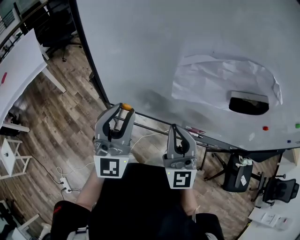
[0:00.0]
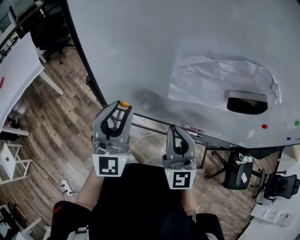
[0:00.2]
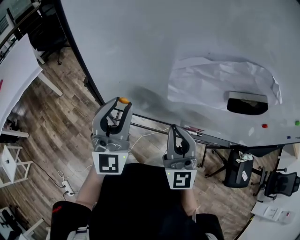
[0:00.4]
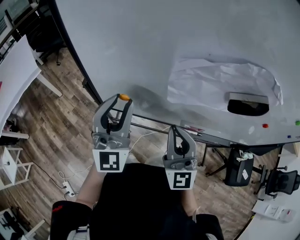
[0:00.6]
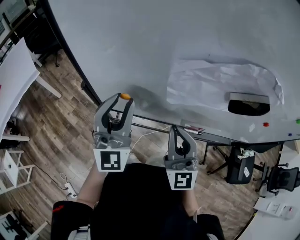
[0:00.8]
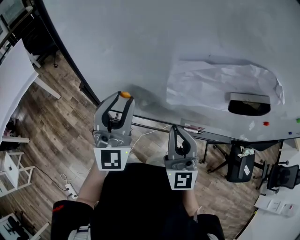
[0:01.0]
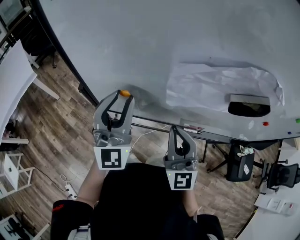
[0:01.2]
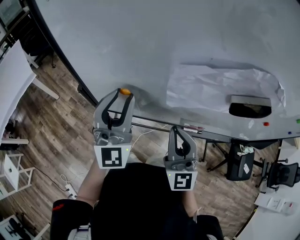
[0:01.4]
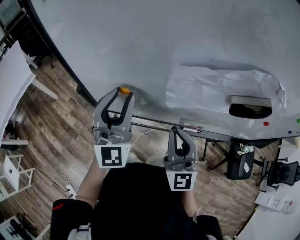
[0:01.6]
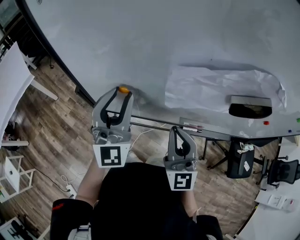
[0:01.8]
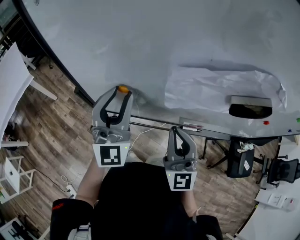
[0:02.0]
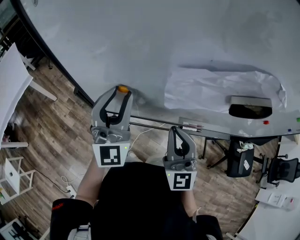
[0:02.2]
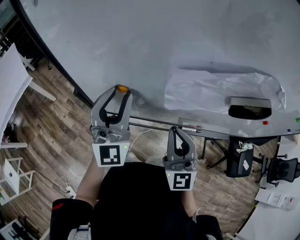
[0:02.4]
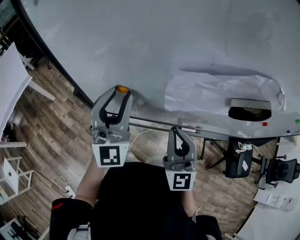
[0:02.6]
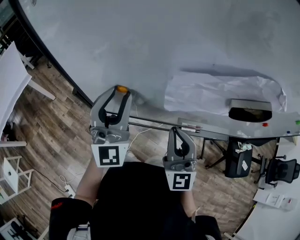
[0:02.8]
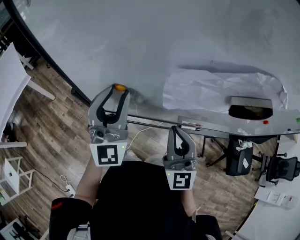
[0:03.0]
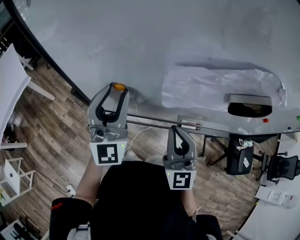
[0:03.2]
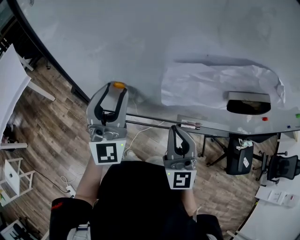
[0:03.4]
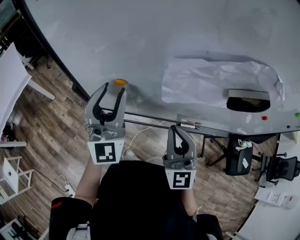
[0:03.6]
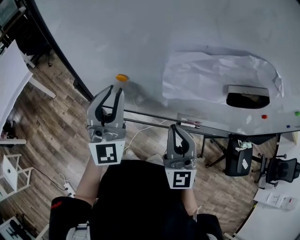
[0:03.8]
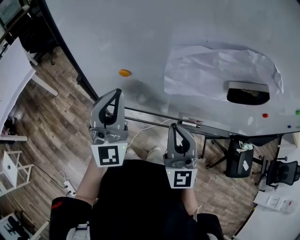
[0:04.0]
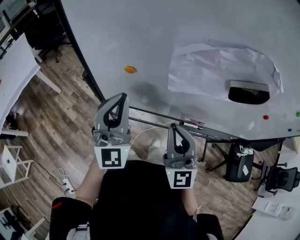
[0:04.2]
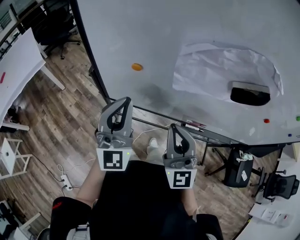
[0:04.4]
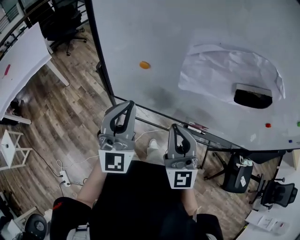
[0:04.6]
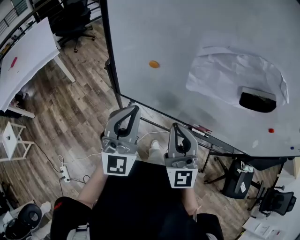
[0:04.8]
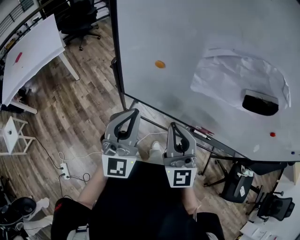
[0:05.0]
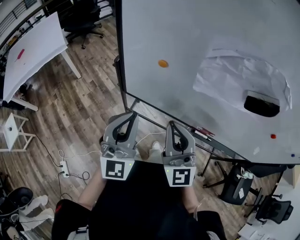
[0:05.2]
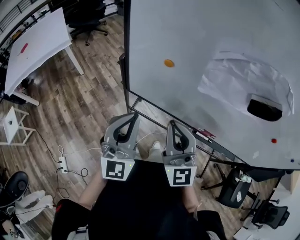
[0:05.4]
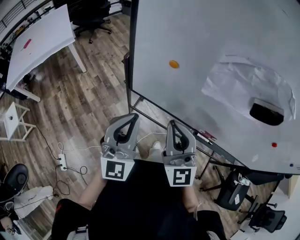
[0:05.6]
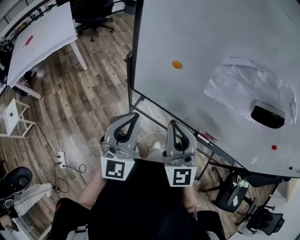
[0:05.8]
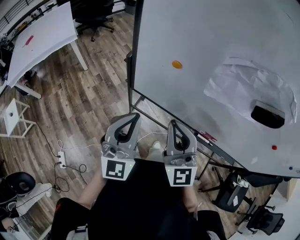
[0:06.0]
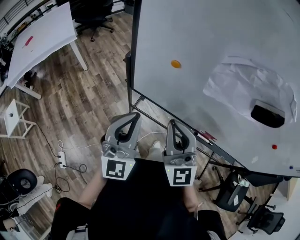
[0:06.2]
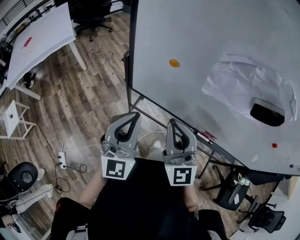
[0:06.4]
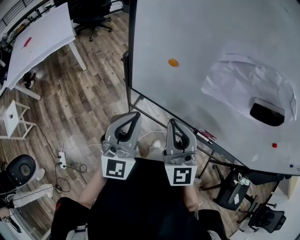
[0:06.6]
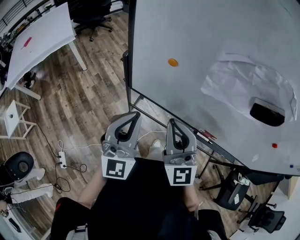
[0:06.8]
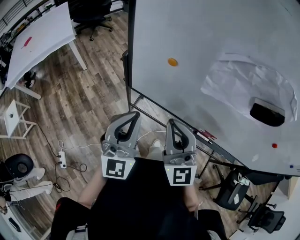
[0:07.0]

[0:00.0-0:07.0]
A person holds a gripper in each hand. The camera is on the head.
0:00.0 to 0:01.4: The left gripper goes approximately 5 cm forward.
0:01.4 to 0:02.8: There are only small adjustments of the grippers.
0:02.8 to 0:04.2: The left gripper shifts roughly 5 cm backward, and closes.
0:04.2 to 0:05.6: The left gripper is displaced backward and to the left by approximately 10 cm. Meanwhile the right gripper heads to the left, covering about 10 cm.
0:05.6 to 0:07.0: Both grippers stay put.

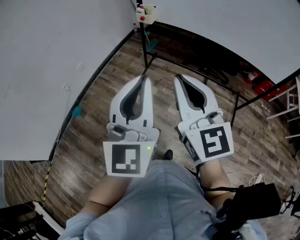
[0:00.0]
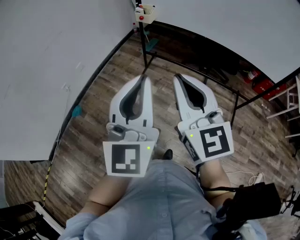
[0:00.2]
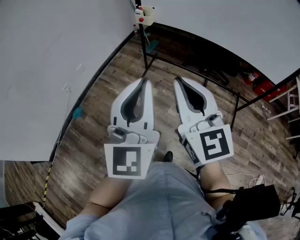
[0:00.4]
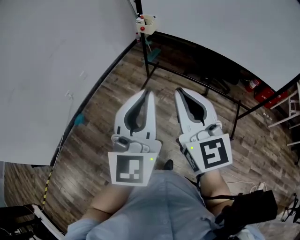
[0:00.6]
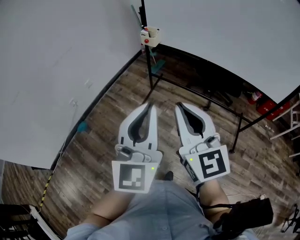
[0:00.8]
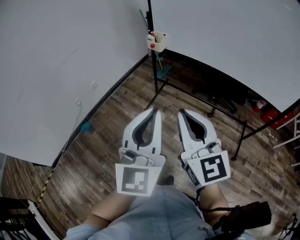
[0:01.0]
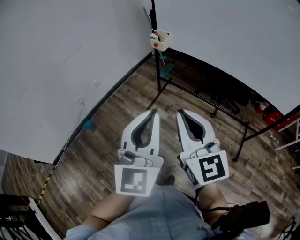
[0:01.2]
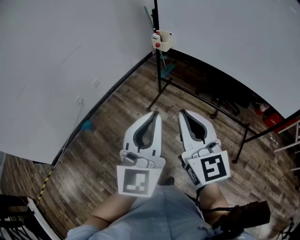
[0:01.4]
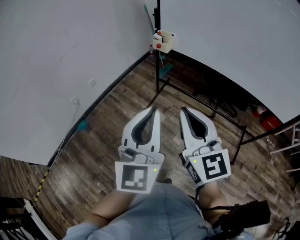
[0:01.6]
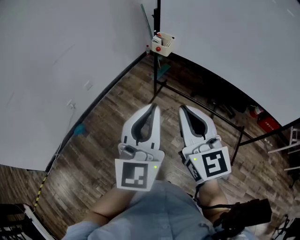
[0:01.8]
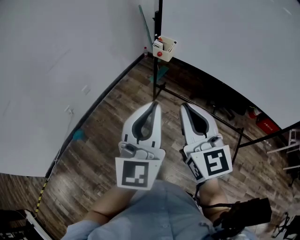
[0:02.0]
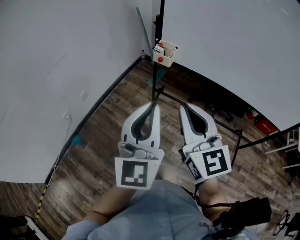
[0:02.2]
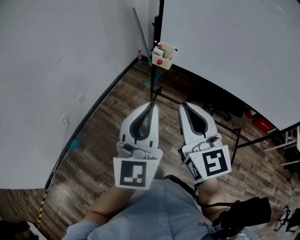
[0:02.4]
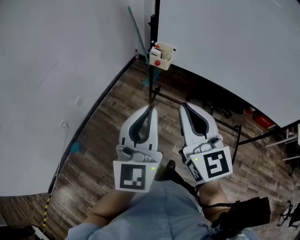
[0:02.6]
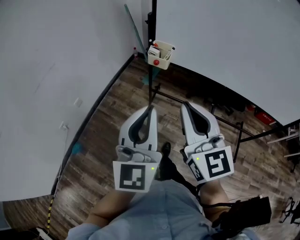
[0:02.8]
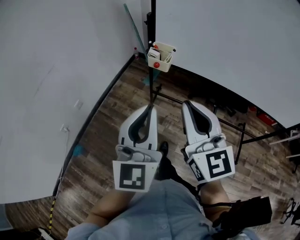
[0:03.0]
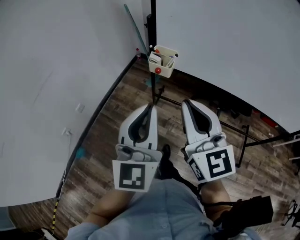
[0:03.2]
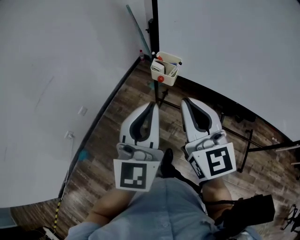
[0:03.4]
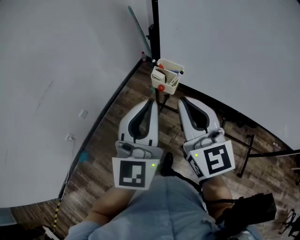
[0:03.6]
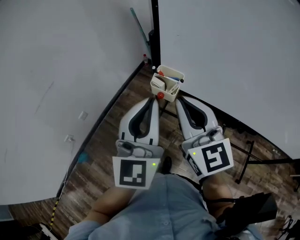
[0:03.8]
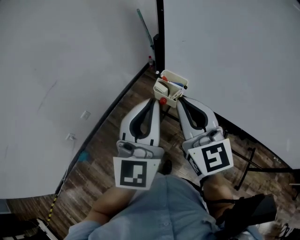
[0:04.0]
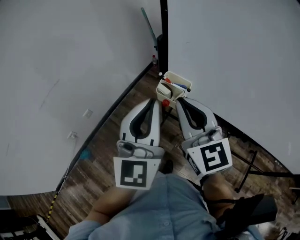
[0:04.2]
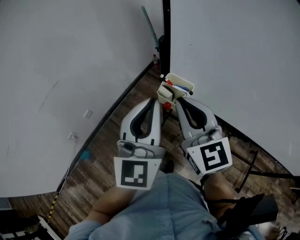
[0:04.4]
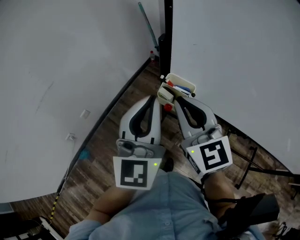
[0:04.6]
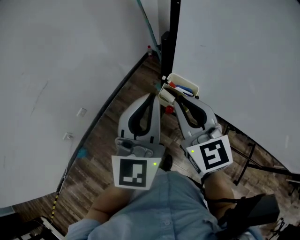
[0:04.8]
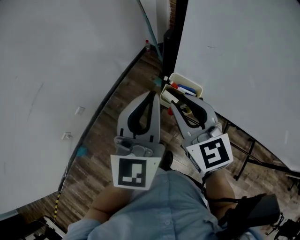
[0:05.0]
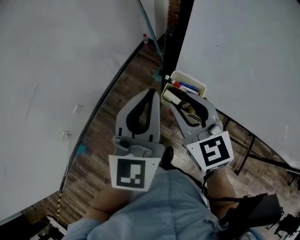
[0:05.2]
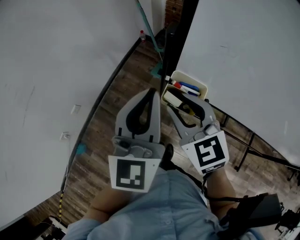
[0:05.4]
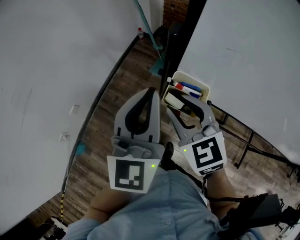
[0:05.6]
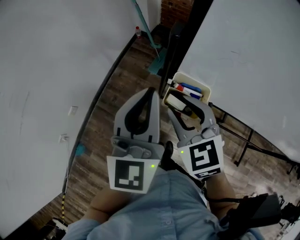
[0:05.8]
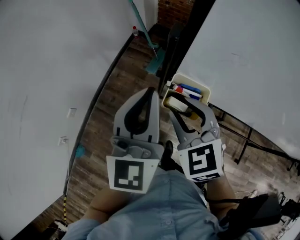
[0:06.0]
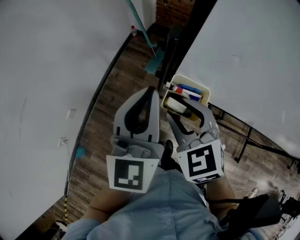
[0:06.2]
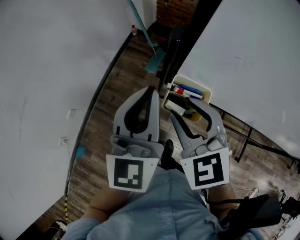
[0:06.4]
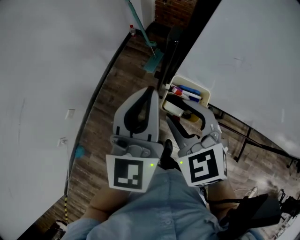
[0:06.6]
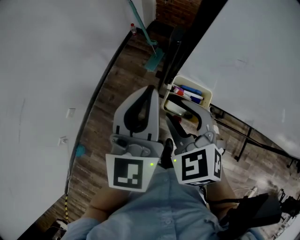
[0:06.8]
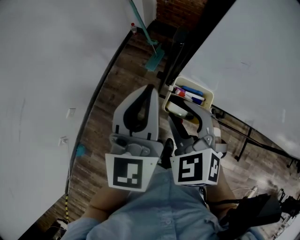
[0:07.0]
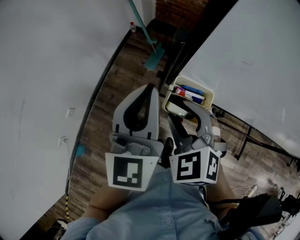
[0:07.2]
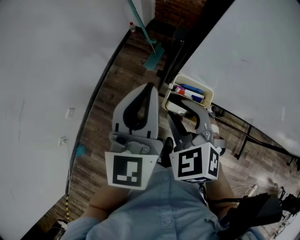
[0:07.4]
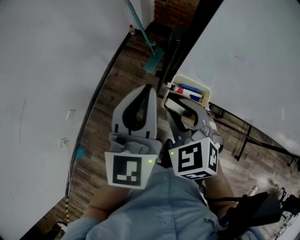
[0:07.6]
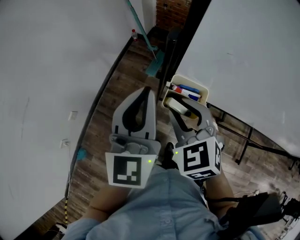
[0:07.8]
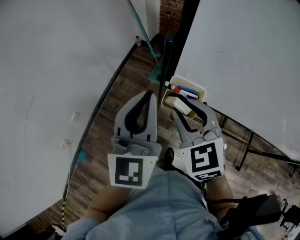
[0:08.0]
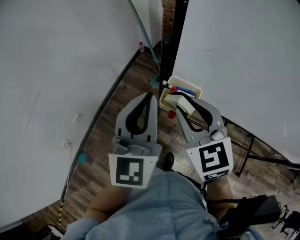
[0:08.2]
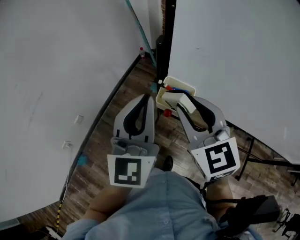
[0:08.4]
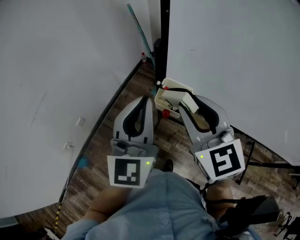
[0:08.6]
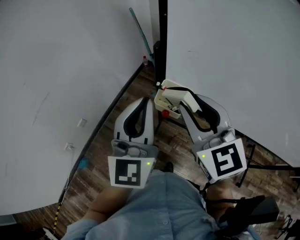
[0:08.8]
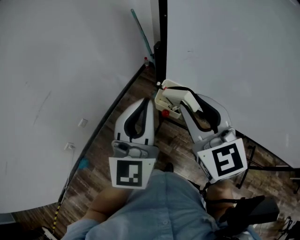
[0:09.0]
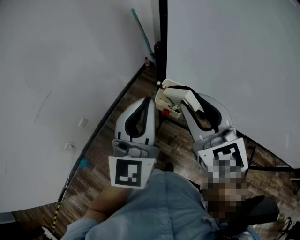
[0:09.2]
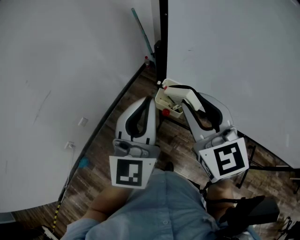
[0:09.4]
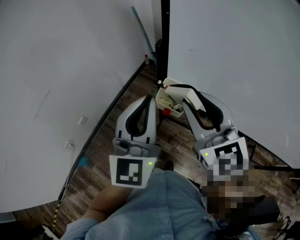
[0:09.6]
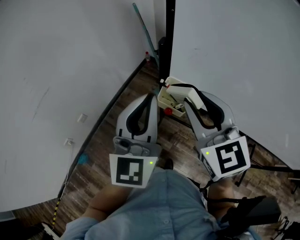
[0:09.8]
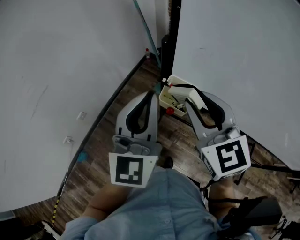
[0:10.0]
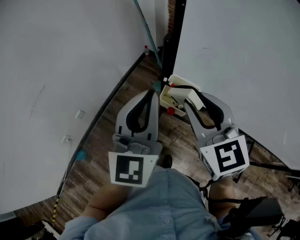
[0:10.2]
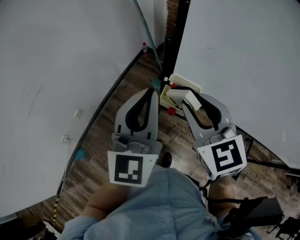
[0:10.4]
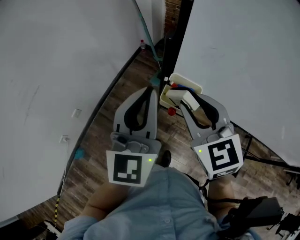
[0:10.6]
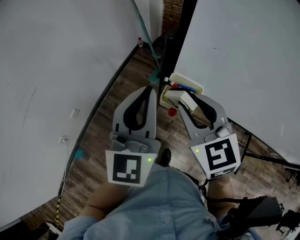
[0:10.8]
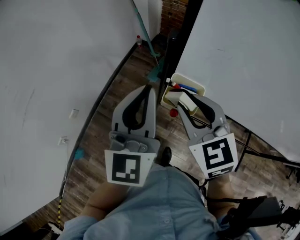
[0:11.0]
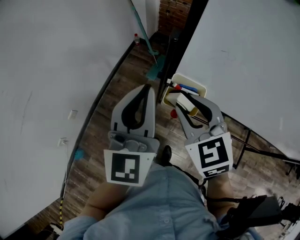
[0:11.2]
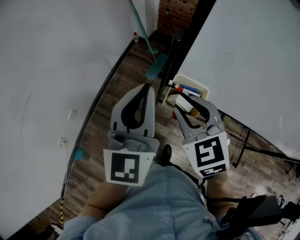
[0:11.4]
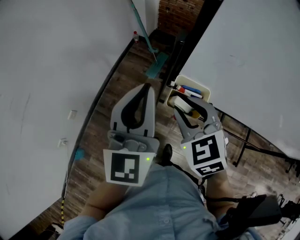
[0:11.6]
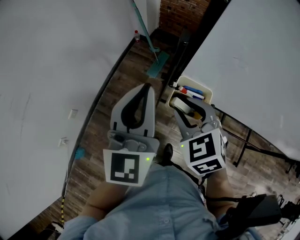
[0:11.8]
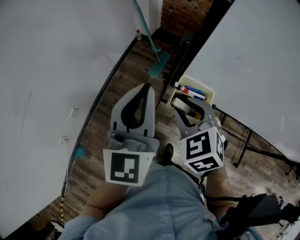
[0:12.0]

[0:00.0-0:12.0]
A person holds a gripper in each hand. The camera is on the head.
0:00.0 to 0:01.6: The two grippers go roughly 10 cm forward.
0:01.6 to 0:03.0: The two grippers go roughly 25 cm forward.
0:03.0 to 0:04.4: Both grippers travel together forward, approximately 25 cm.
0:04.4 to 0:06.0: The right gripper is displaced downward and forward by some 15 cm, tips its fingers downward by about 30 degrees, and opens its fingers, while the left gripper travels forward and downward by approximately 15 cm.
0:06.0 to 0:07.6: The grippers stay close to where they were, moving slightly.
0:07.6 to 0:09.0: The right gripper moves upward and backward, roughly 20 cm, and tilts its fingers approximately 30 degrees upward; the left gripper shifts approximately 15 cm backward and upward.
0:09.0 to 0:10.4: The left gripper moves approximately 5 cm; the right gripper travels downward by some 5 cm.
0:10.4 to 0:12.0: The left gripper heads forward, covering roughly 5 cm. Meanwhile the right gripper moves downward, some 10 cm, and changes its angle by roughly 30 degrees.

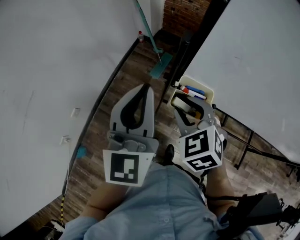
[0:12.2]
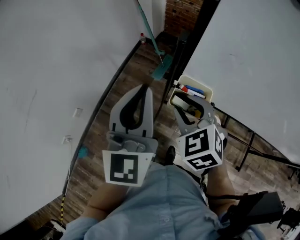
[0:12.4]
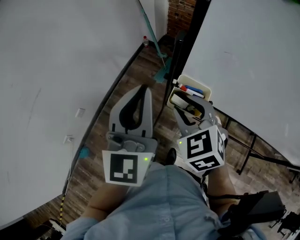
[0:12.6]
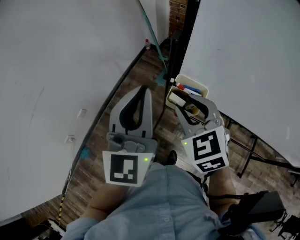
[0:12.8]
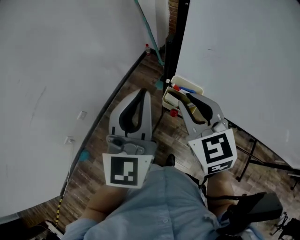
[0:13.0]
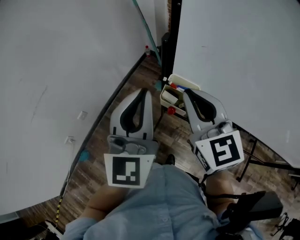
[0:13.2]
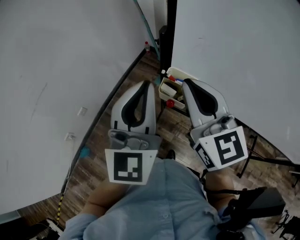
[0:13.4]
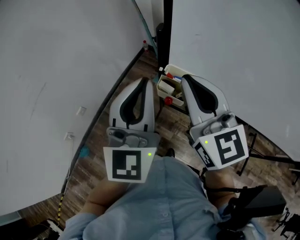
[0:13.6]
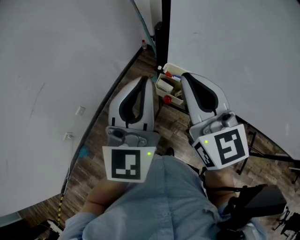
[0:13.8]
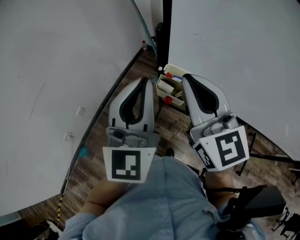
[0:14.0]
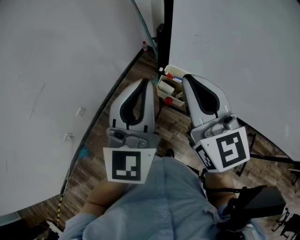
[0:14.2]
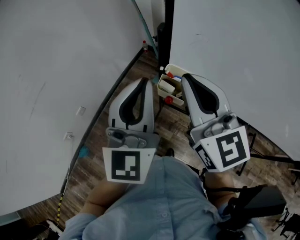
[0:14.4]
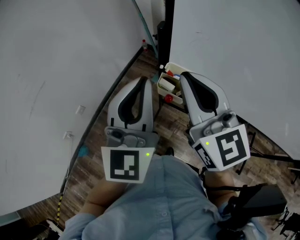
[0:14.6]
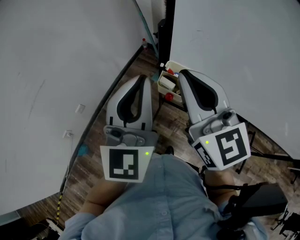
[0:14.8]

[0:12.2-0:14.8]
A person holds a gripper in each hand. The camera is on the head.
0:12.2 to 0:13.4: The right gripper travels upward by some 15 cm, points its fingers approximately 40 degrees further upward, and closes. Meanwhile the left gripper shifts approximately 10 cm backward and upward.
0:13.4 to 0:14.8: There are only small adjustments of the grippers.

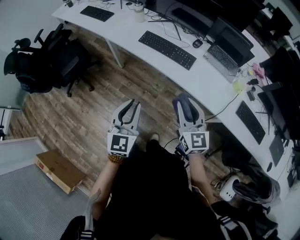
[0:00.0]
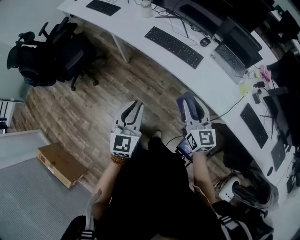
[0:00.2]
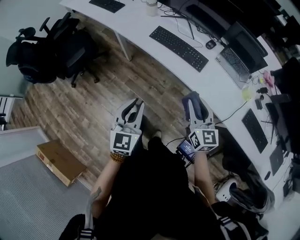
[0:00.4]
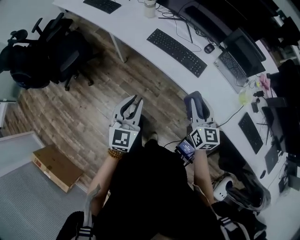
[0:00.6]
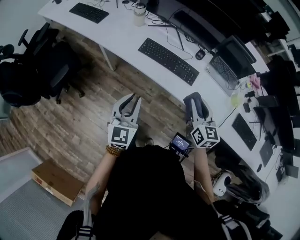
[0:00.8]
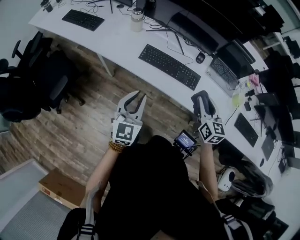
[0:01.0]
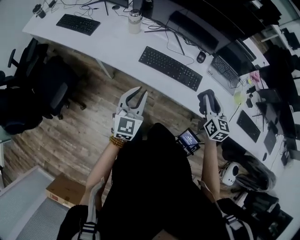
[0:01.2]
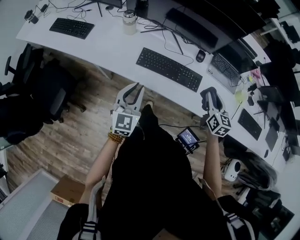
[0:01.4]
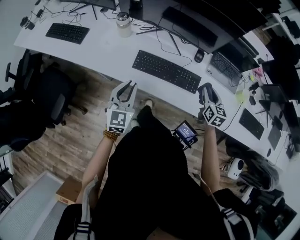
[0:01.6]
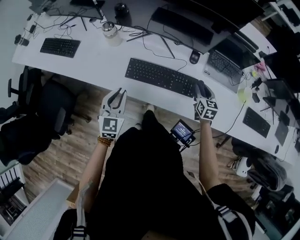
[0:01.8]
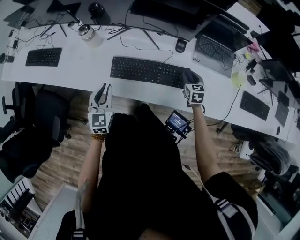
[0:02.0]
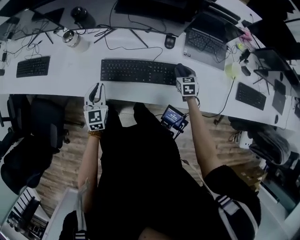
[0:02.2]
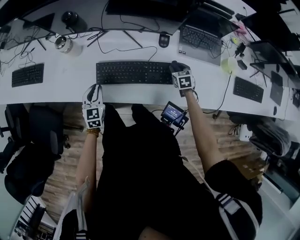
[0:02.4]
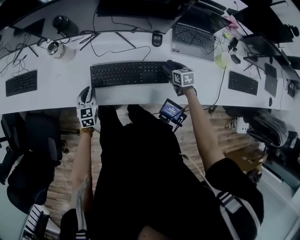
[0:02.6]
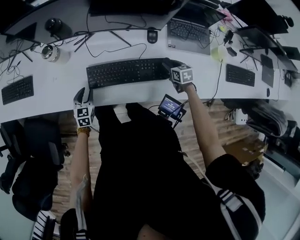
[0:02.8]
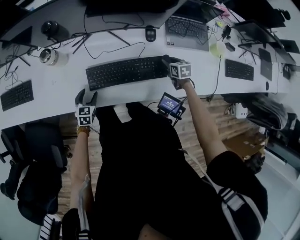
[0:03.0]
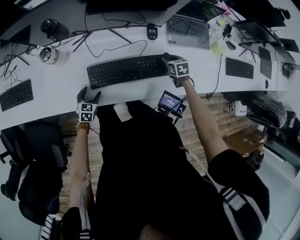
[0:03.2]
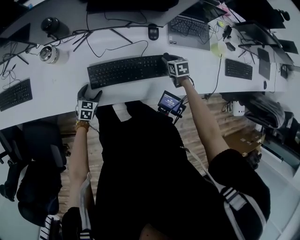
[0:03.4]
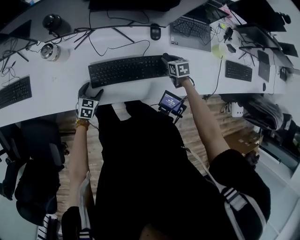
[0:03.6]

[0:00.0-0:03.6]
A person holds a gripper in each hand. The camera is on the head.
0:00.0 to 0:01.8: The left gripper shifts by some 40 cm, and swivels approximately 20 degrees, while the right gripper ends up roughly 40 cm from where it was, and turns by roughly 40 degrees.
0:01.8 to 0:03.6: The left gripper shifts roughly 25 cm downward, changes its angle by approximately 40 degrees, and opens up, while the right gripper moves downward and forward, about 15 cm, changes its angle by some 20 degrees, and opens, then closes once more.
